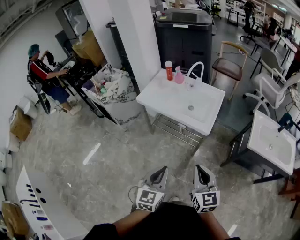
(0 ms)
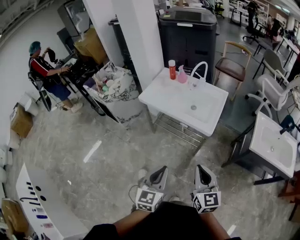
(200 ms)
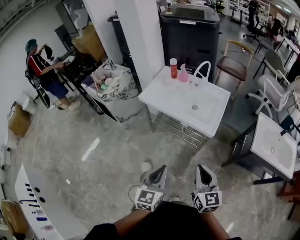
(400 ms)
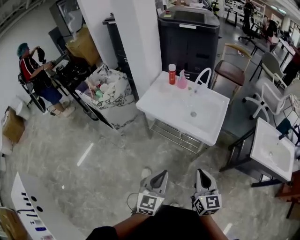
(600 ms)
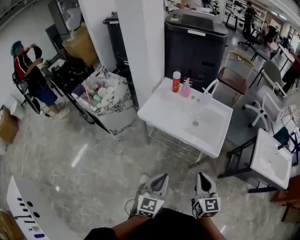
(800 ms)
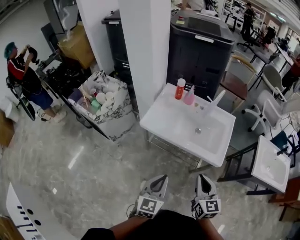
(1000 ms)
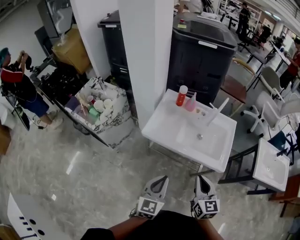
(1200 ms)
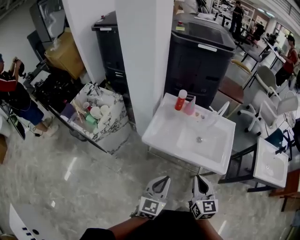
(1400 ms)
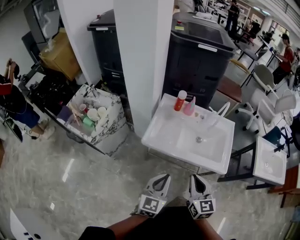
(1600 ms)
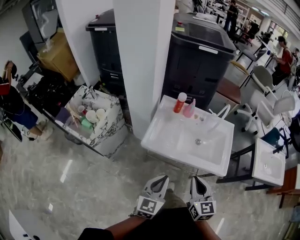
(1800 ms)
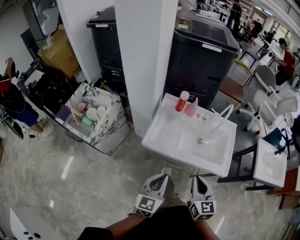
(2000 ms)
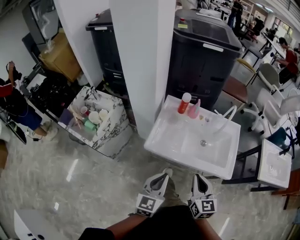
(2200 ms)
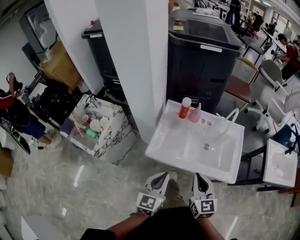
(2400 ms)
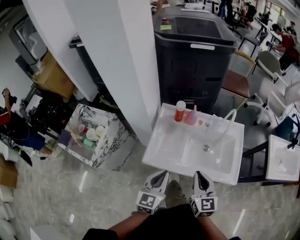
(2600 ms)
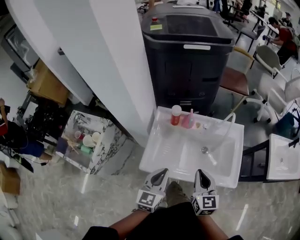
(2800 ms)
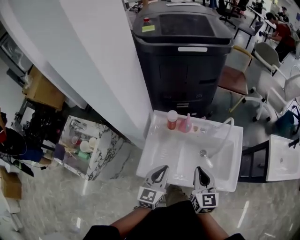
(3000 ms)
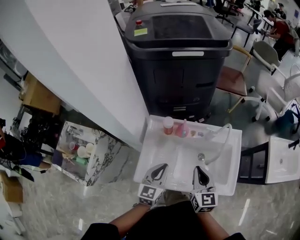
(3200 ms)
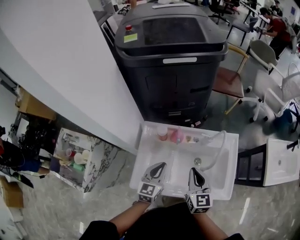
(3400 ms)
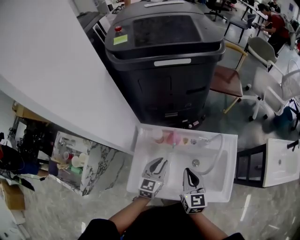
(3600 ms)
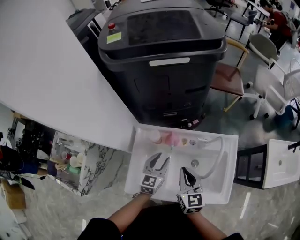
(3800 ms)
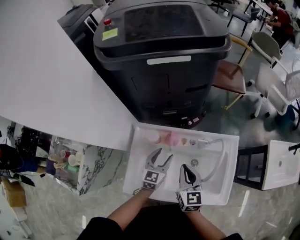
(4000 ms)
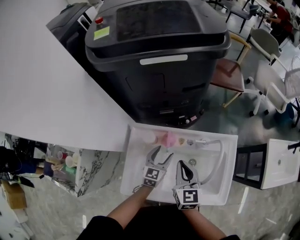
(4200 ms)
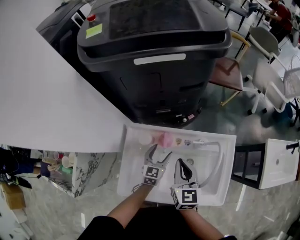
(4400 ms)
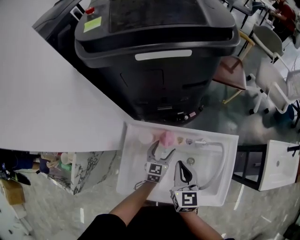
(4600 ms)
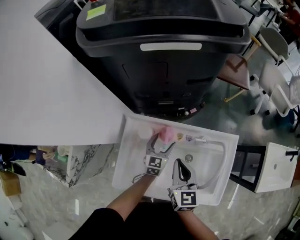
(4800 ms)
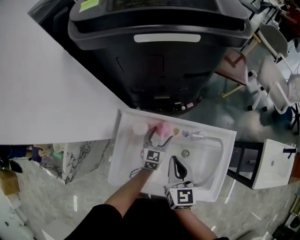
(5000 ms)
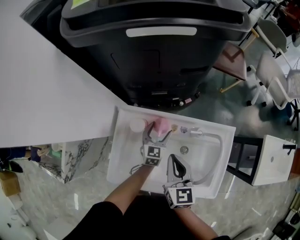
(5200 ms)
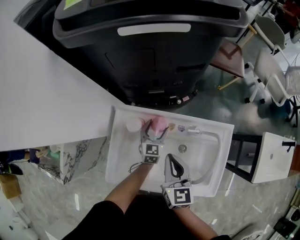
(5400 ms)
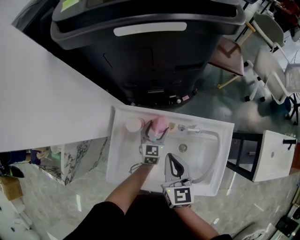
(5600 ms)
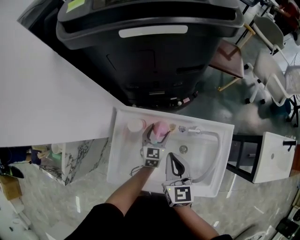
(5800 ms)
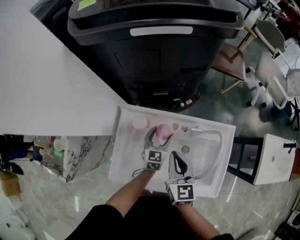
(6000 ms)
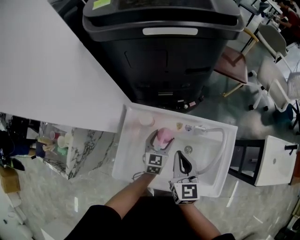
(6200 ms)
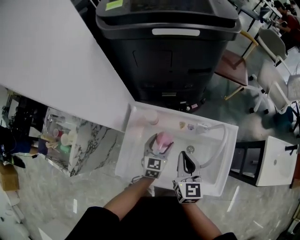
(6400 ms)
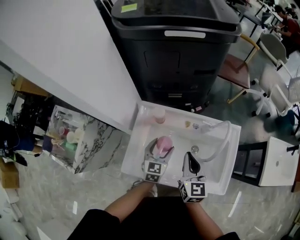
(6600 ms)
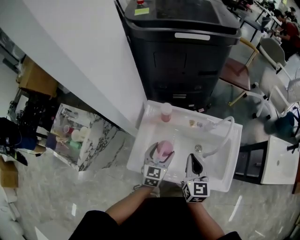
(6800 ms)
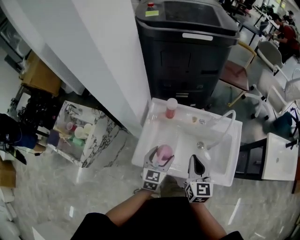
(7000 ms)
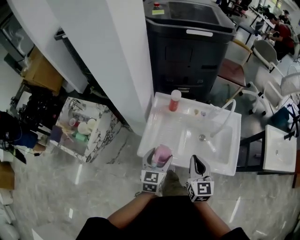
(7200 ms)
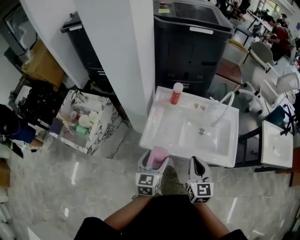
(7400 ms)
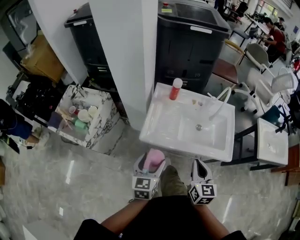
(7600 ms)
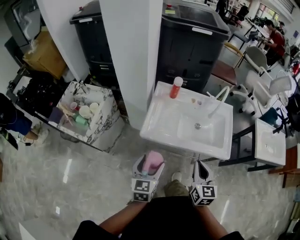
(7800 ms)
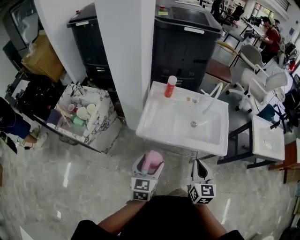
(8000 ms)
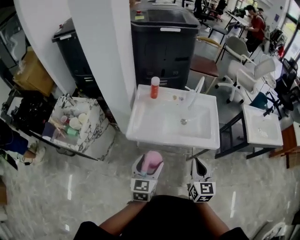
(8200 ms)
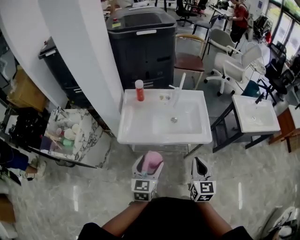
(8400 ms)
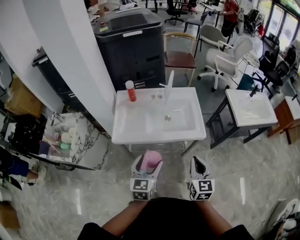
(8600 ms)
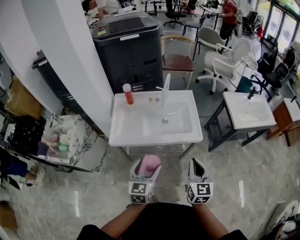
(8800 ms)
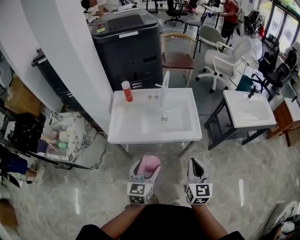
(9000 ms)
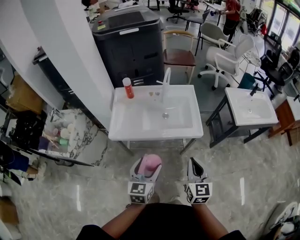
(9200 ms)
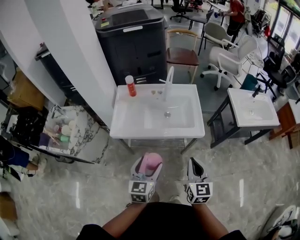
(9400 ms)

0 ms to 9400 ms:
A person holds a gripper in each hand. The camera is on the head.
0 ms to 1600 ms: The two grippers travel together, forward and to the left, some 50 cm.
1600 ms to 3200 ms: The grippers both shift forward by roughly 35 cm.
3200 ms to 4800 ms: The right gripper moves forward, roughly 15 cm; the left gripper heads forward and downward, covering approximately 30 cm, and opens up.
4800 ms to 6200 ms: The left gripper moves approximately 5 cm.
6200 ms to 7800 ms: The two grippers travel together, backward, roughly 50 cm.
7800 ms to 9400 ms: The grippers both shift to the right by roughly 20 cm.

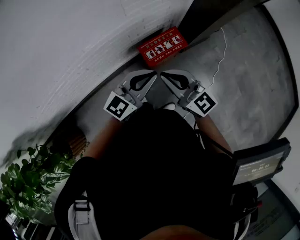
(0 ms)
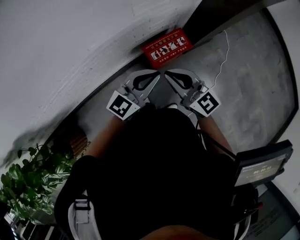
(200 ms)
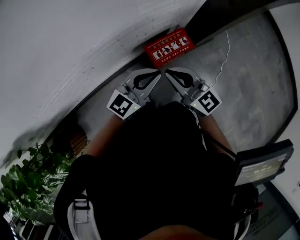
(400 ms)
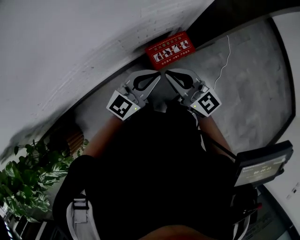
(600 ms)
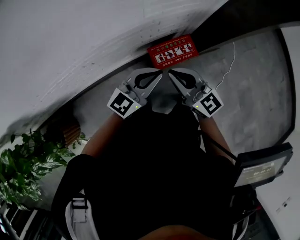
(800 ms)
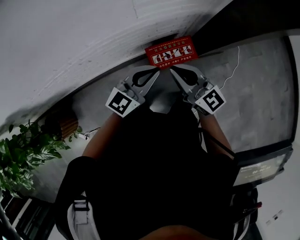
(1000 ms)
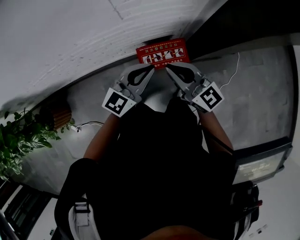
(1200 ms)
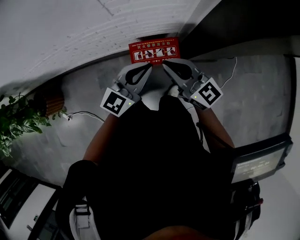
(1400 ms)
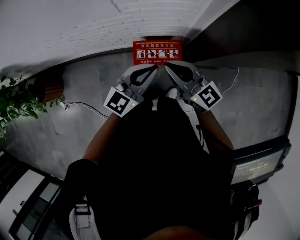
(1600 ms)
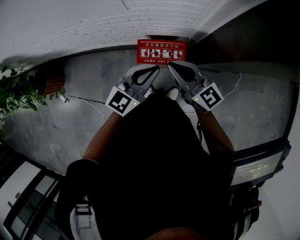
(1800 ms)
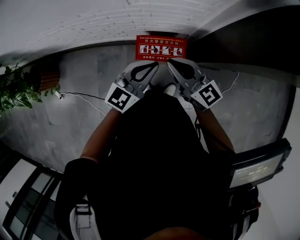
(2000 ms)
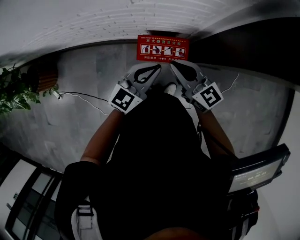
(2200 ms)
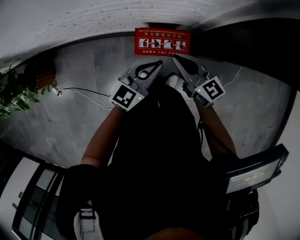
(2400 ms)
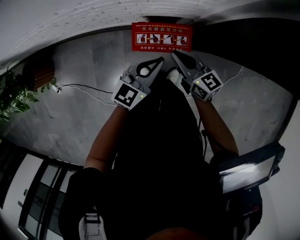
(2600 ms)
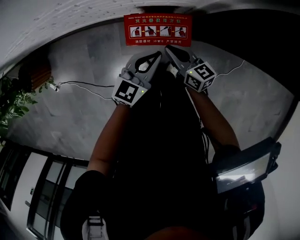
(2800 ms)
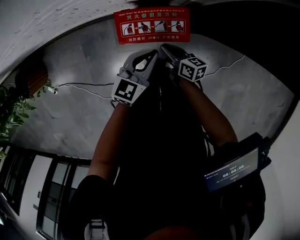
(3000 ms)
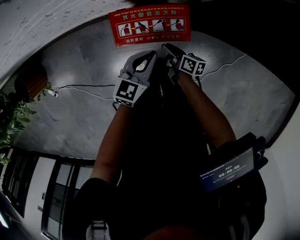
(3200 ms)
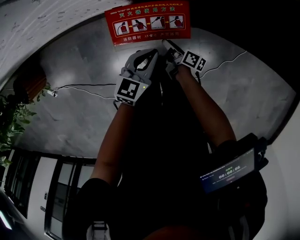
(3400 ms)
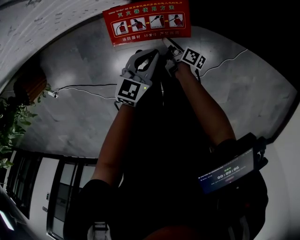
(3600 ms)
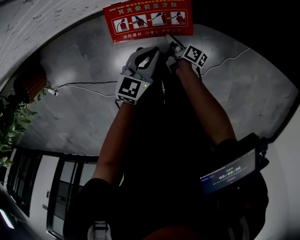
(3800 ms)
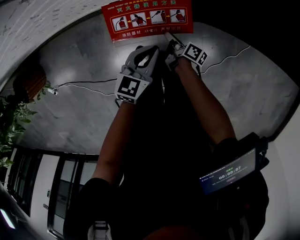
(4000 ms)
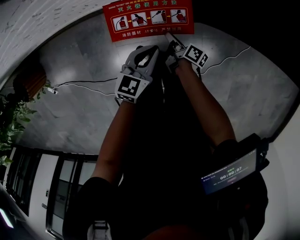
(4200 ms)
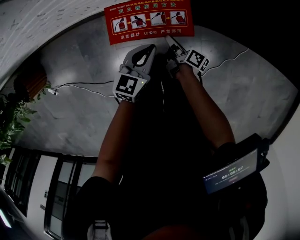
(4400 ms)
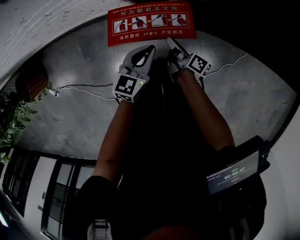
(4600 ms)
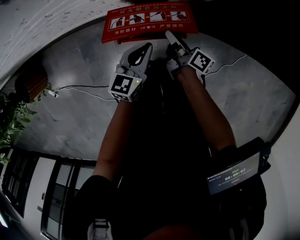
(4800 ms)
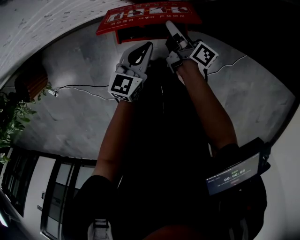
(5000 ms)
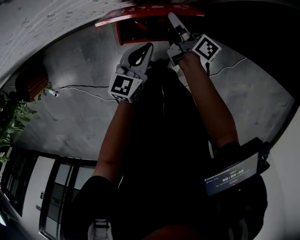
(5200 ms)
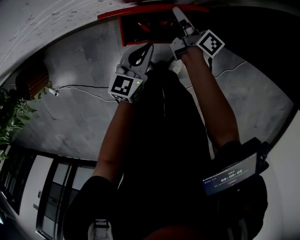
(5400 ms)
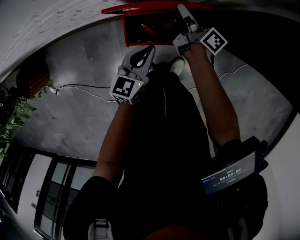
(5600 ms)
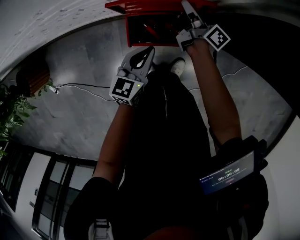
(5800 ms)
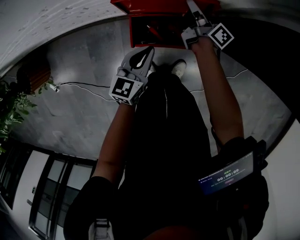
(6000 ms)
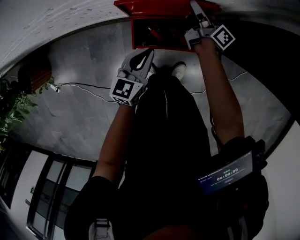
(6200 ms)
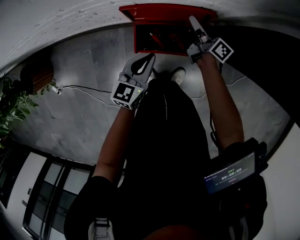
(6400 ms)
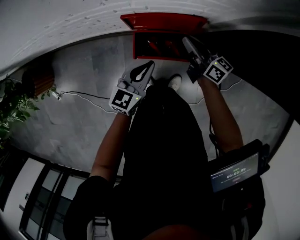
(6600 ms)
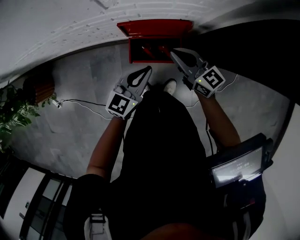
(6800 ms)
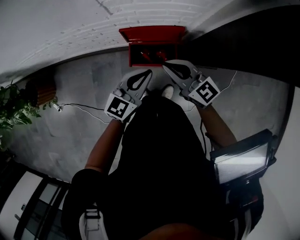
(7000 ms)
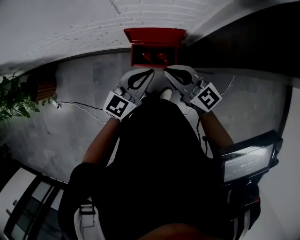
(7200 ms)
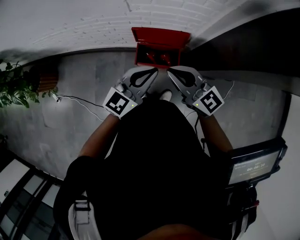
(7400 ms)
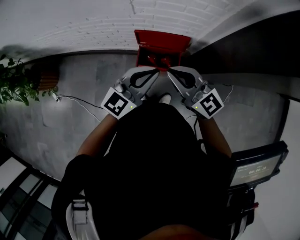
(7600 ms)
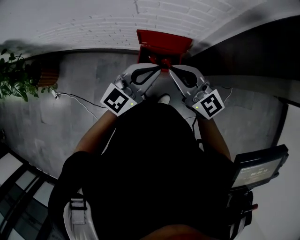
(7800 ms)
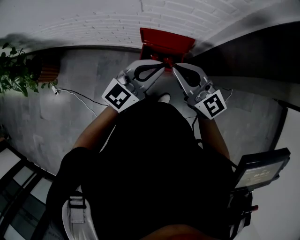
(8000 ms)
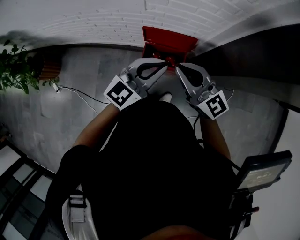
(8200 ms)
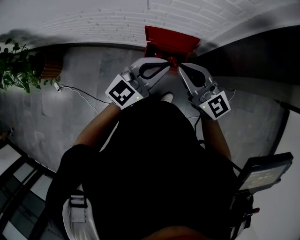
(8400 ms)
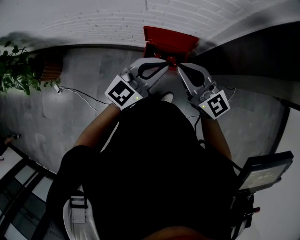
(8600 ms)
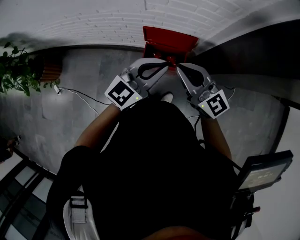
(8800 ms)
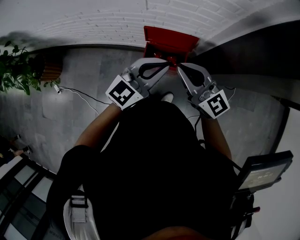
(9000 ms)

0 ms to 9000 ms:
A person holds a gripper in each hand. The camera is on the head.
0 ms to 1600 ms: The left gripper shifts by approximately 25 cm, and rotates about 30 degrees. The right gripper moves approximately 25 cm, and turns by about 30 degrees.
1600 ms to 3000 ms: Both grippers travel together downward, some 40 cm. The right gripper rolls clockwise, seen from behind, by about 50 degrees.
3000 ms to 4400 ms: Both grippers travel together downward, about 10 cm. The right gripper changes its angle by about 40 degrees, and opens, then closes again.
4400 ms to 6000 ms: The left gripper travels to the left, forward and upward by roughly 10 cm. Meanwhile the right gripper is displaced forward and upward by some 30 cm, and turns by roughly 20 degrees.
6000 ms to 7600 ms: The right gripper shifts about 50 cm upward and backward, rotates around the line of its fingers by roughly 70 degrees, counterclockwise from behind, and opens, then closes once more; the left gripper heads upward, covering about 40 cm, and swivels some 30 degrees.
7600 ms to 9000 ms: The grippers make only small movements.

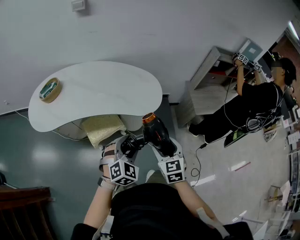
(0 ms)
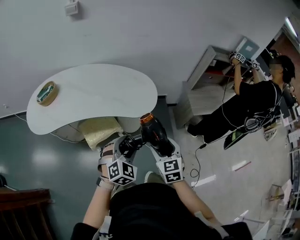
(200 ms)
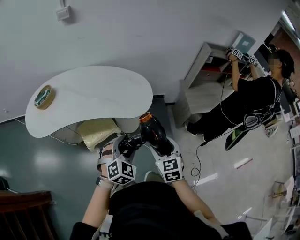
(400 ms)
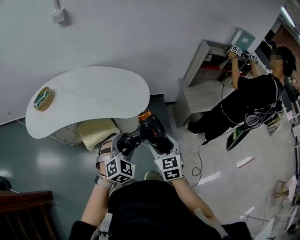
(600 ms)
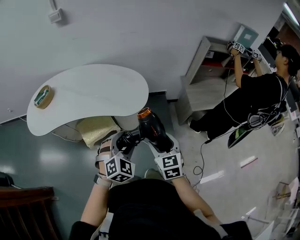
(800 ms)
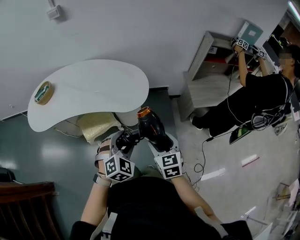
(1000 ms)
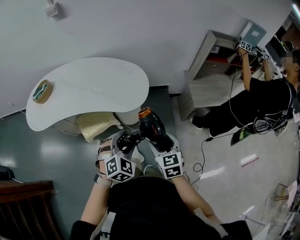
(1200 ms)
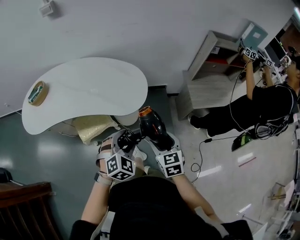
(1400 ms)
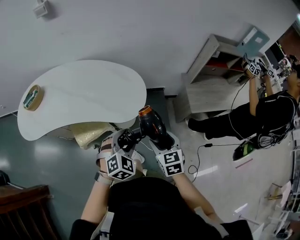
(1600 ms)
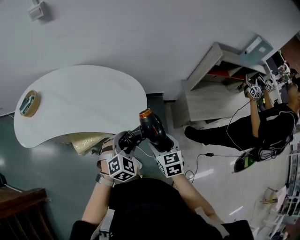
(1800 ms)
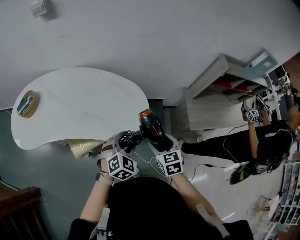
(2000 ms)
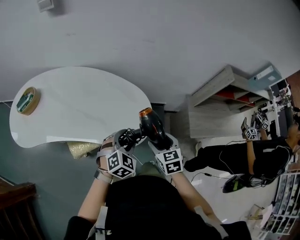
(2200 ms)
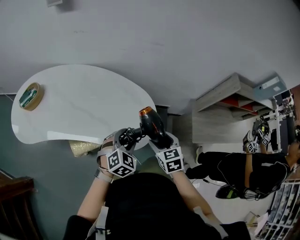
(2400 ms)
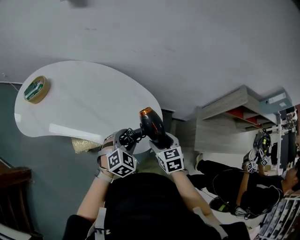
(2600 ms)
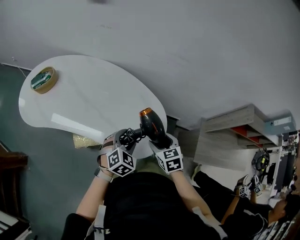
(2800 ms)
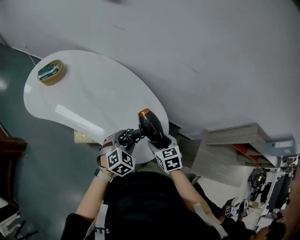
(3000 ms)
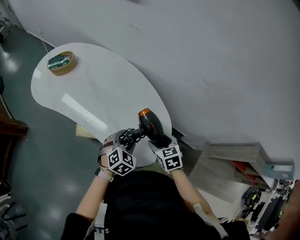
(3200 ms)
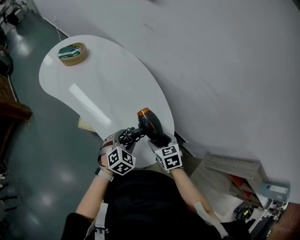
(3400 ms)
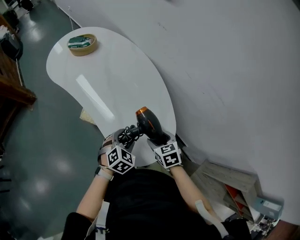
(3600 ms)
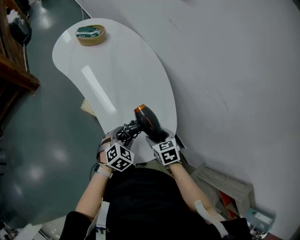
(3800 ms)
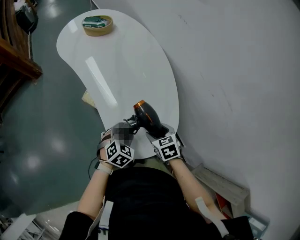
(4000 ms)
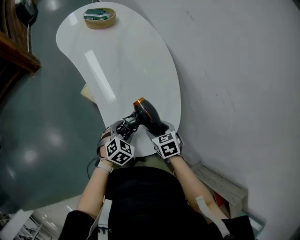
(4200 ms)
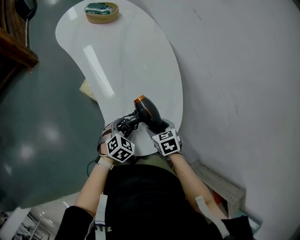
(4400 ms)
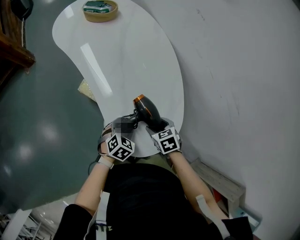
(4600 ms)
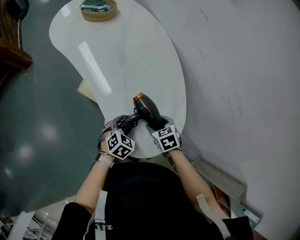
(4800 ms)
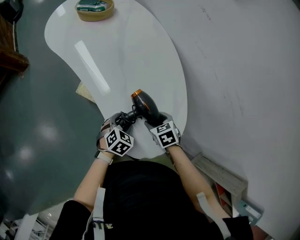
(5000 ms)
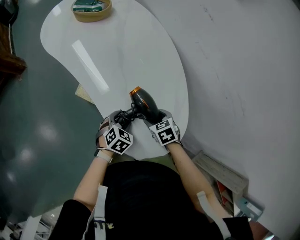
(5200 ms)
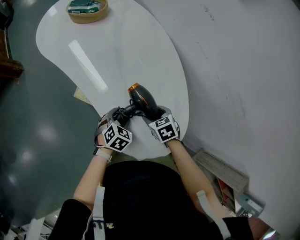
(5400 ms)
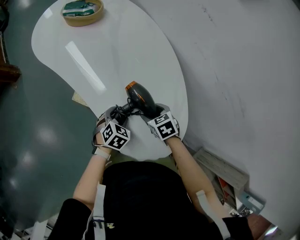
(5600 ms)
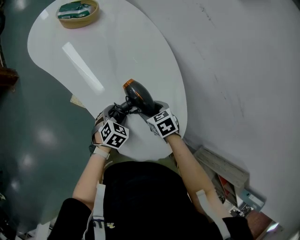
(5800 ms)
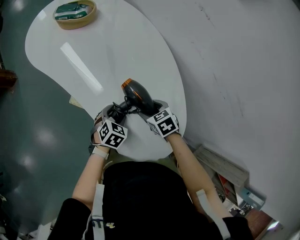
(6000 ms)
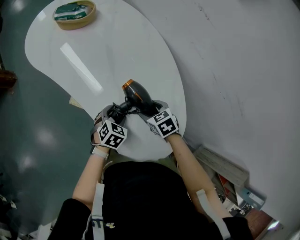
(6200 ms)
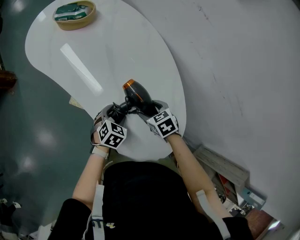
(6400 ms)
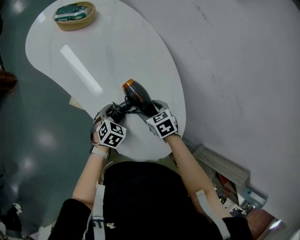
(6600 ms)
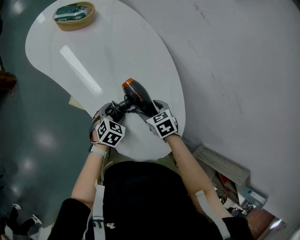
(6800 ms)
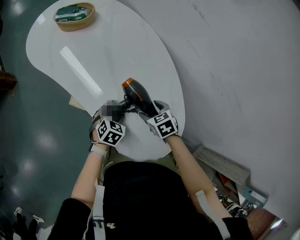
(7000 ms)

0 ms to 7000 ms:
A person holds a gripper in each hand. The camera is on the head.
0 ms to 1400 ms: The grippers both shift to the right and forward by some 15 cm.
1400 ms to 2800 ms: The grippers both shift forward by some 30 cm. The right gripper turns by roughly 30 degrees; the left gripper turns by about 30 degrees.
2800 ms to 4200 ms: The right gripper moves roughly 15 cm, and turns by about 50 degrees. Meanwhile the left gripper travels downward by approximately 10 cm, and rolls counterclockwise, seen from behind, by some 40 degrees.
4200 ms to 5600 ms: The right gripper heads forward and to the left, covering about 15 cm. The left gripper moves forward, to the left and downward, about 15 cm.
5600 ms to 7000 ms: The grippers make only small movements.
